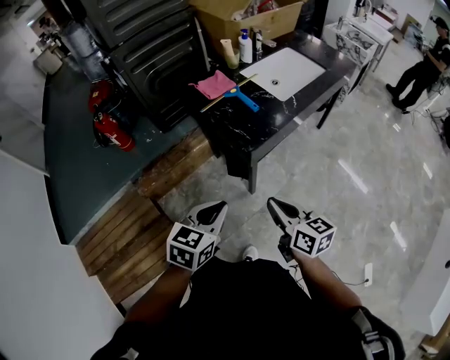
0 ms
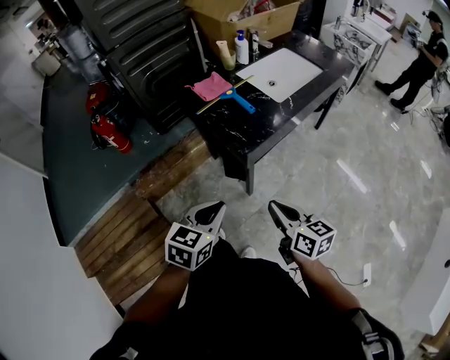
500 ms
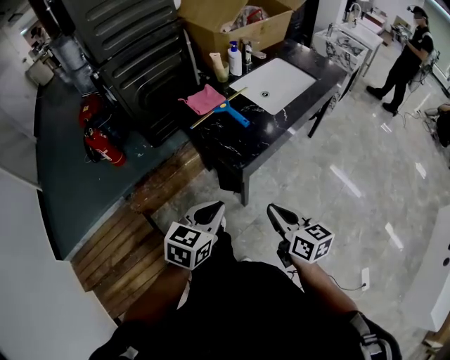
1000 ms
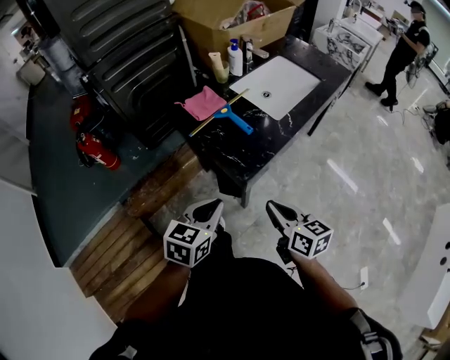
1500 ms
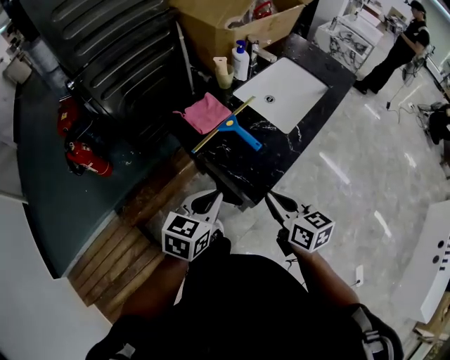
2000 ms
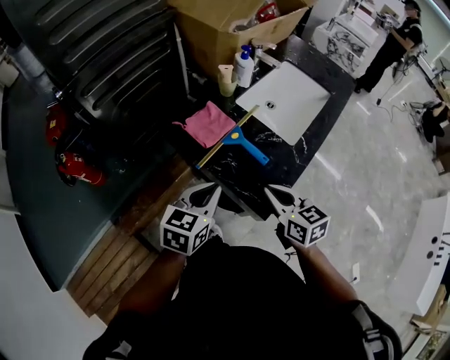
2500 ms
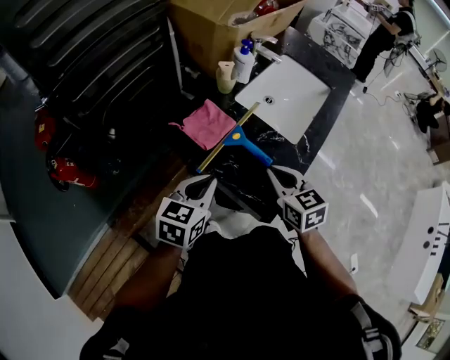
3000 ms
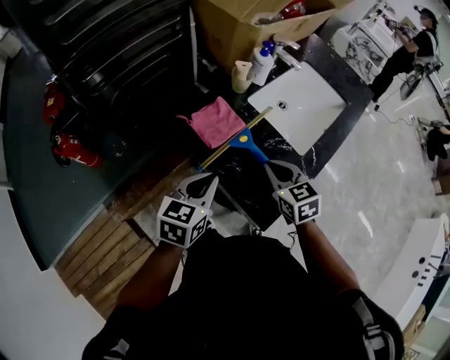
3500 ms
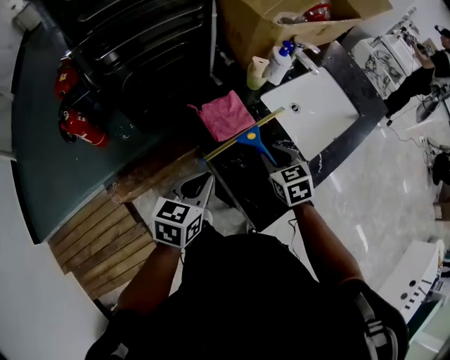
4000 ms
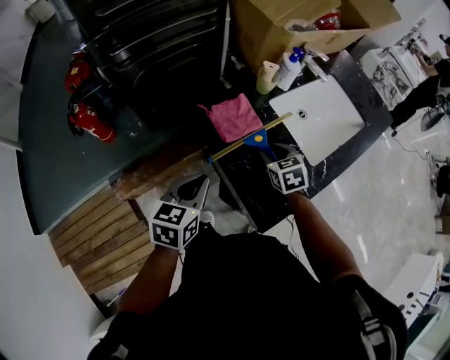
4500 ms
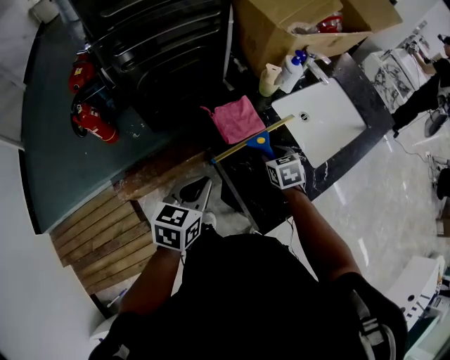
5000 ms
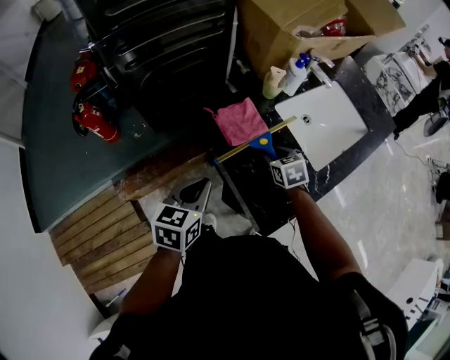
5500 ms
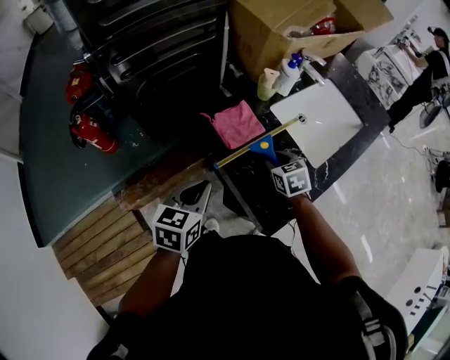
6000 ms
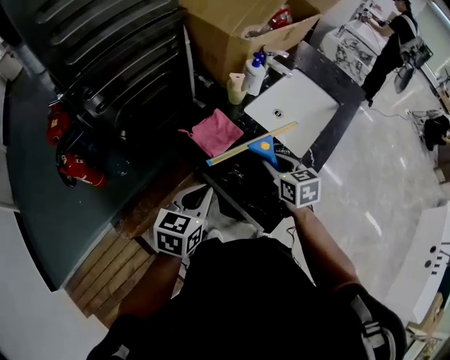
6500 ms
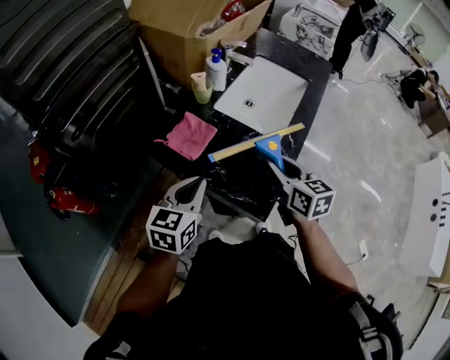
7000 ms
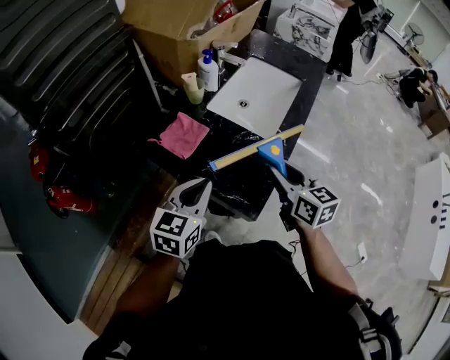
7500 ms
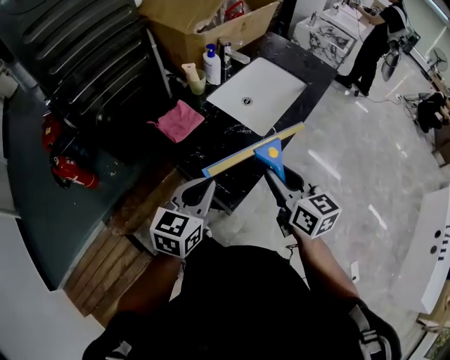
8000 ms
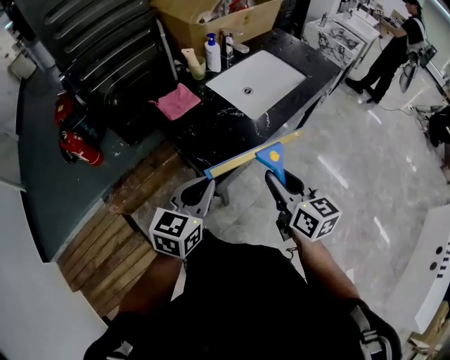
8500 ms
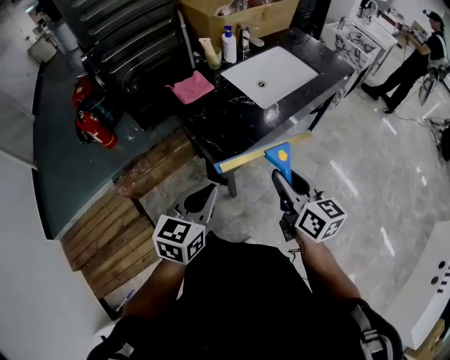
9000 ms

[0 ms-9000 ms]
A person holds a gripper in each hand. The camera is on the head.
0 ms to 2000 ms: The grippers both shift forward by some 25 cm.
2000 ms to 4500 ms: The right gripper shifts some 25 cm forward, turns by some 40 degrees, and opens, while the left gripper moves forward and to the left, approximately 15 cm.
4500 ms to 7000 ms: The left gripper heads to the right, covering approximately 5 cm, and changes its angle by approximately 30 degrees; the right gripper goes roughly 20 cm upward, backward and to the right, and turns by approximately 40 degrees.
7000 ms to 9000 ms: The two grippers go approximately 25 cm backward and to the right. The right gripper changes its angle by approximately 20 degrees.

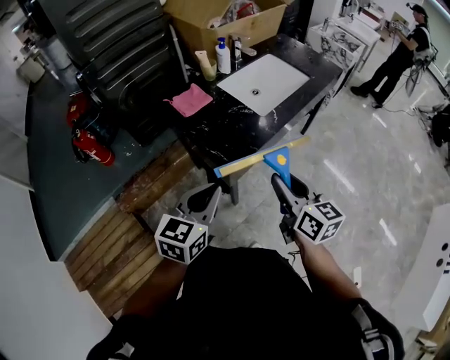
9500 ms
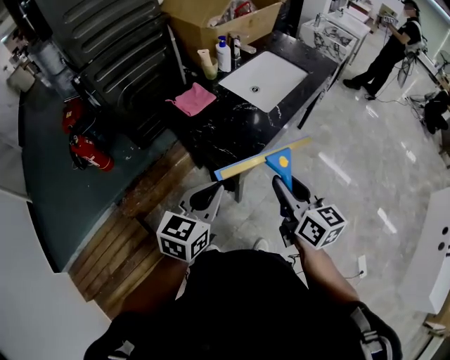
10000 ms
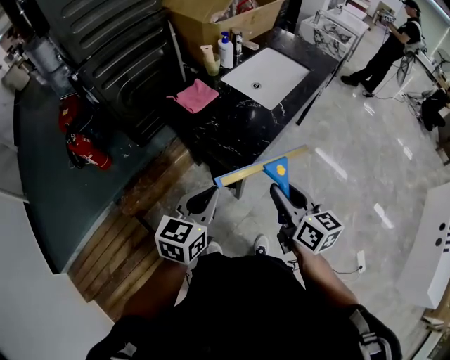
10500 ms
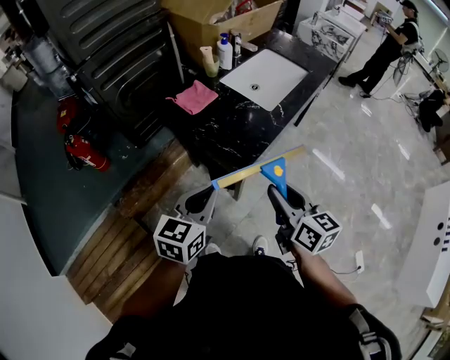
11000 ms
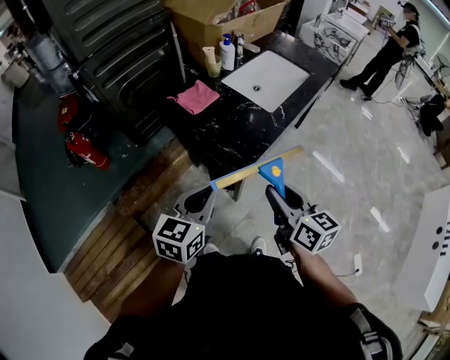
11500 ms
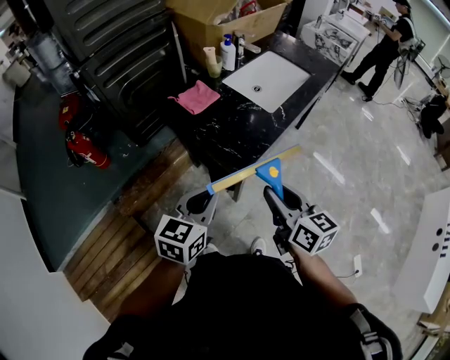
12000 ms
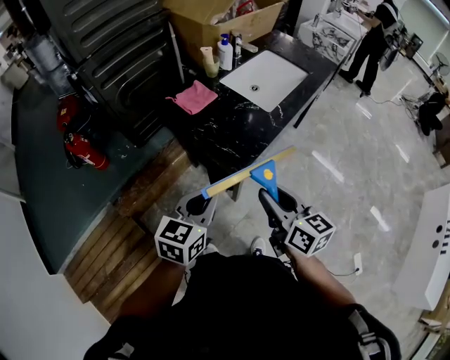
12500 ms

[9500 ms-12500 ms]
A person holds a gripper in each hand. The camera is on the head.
9500 ms to 11000 ms: Both grippers travel together to the left, roughly 10 cm.
11000 ms to 12500 ms: There are only small adjustments of the grippers.

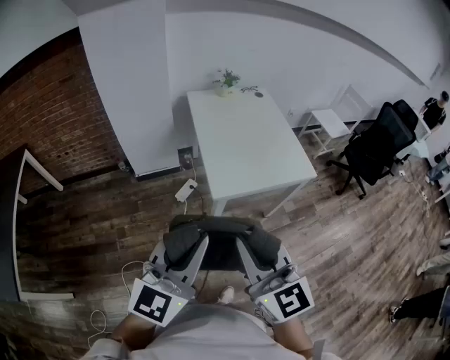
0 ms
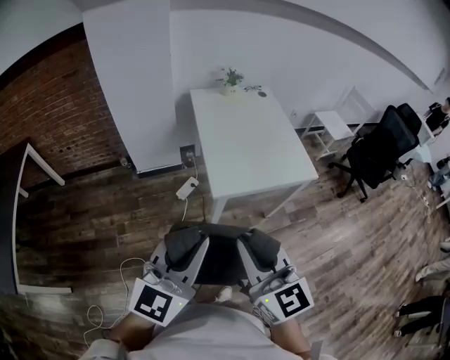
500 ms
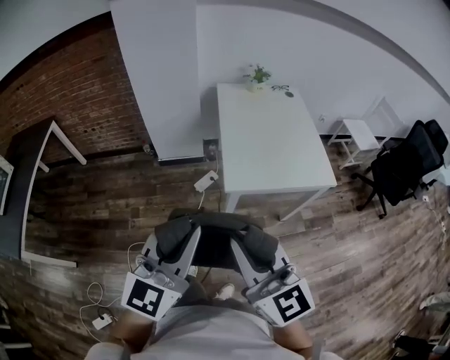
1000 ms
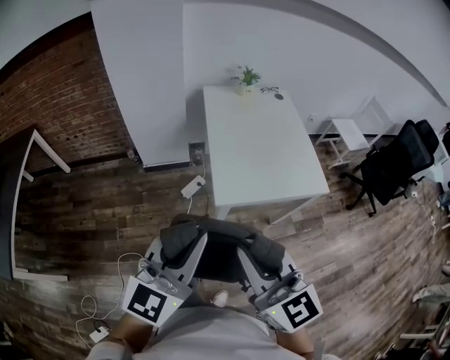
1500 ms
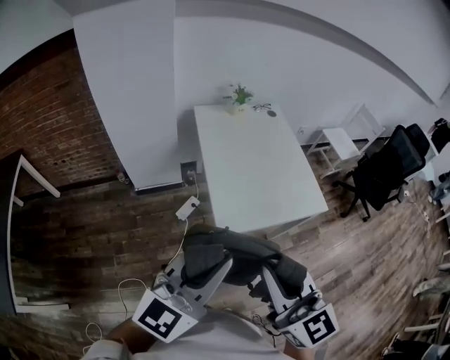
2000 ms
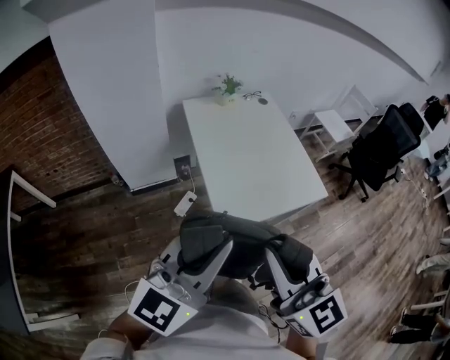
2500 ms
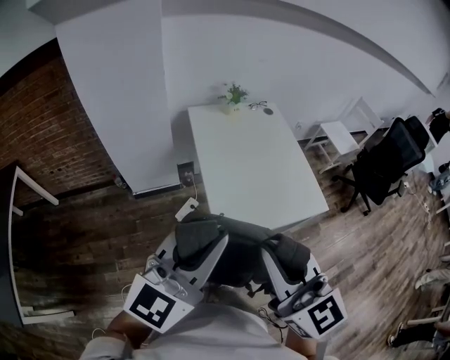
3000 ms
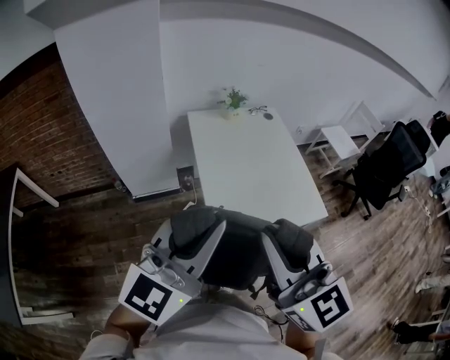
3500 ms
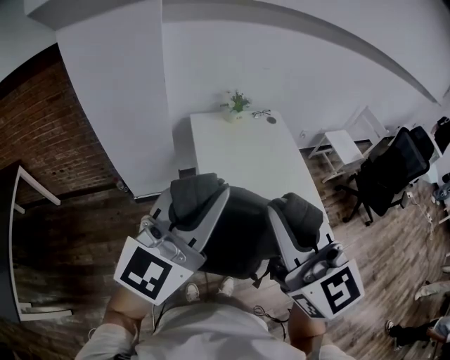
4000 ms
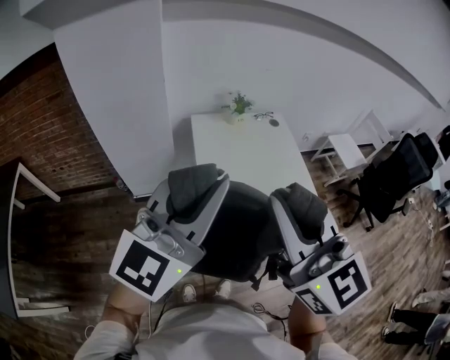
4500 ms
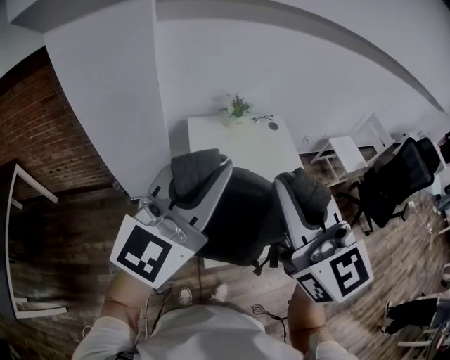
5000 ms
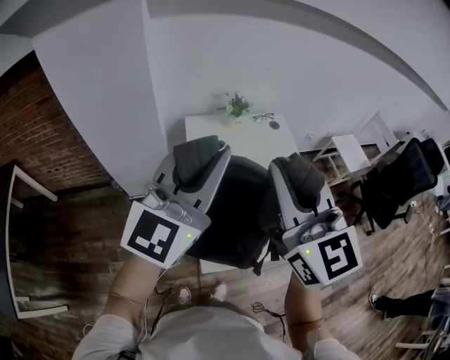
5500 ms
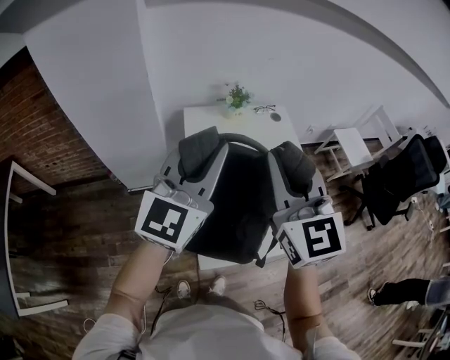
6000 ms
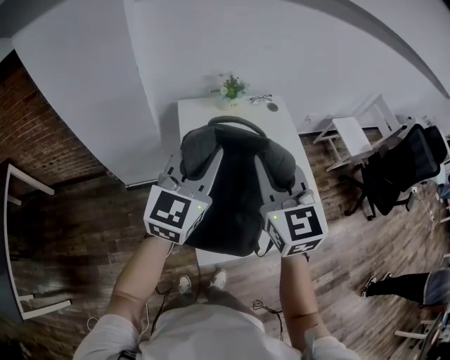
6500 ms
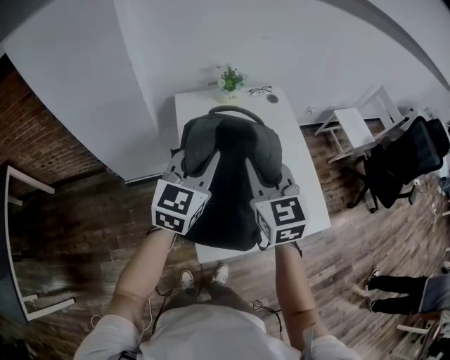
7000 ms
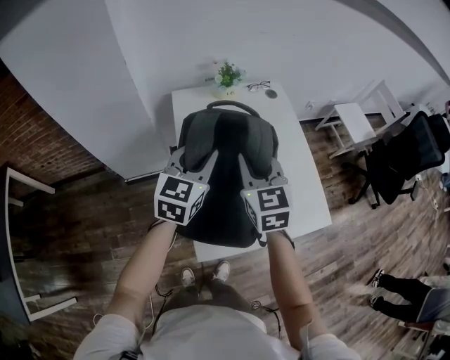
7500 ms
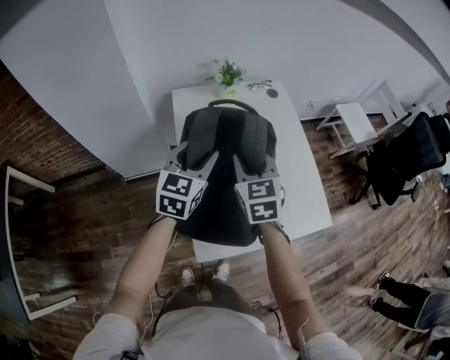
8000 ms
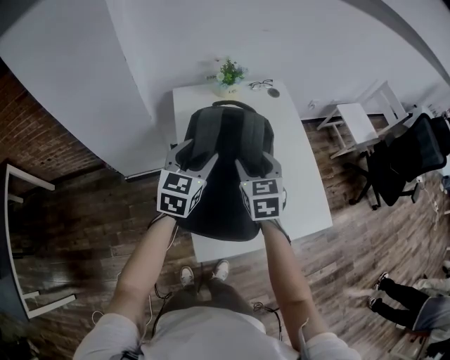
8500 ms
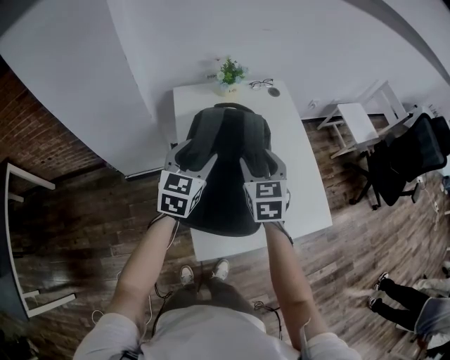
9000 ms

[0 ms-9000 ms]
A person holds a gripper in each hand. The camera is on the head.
0 ms to 2000 ms: The grippers both shift forward by about 15 cm.
2000 ms to 4500 ms: The grippers both shift forward and upward by some 25 cm.
4500 ms to 7000 ms: The grippers both shift forward and downward by approximately 35 cm. The right gripper swivels approximately 20 degrees. Meanwhile the left gripper changes its angle by roughly 20 degrees.
7000 ms to 9000 ms: The left gripper heads downward, covering some 10 cm, and opens. Meanwhile the right gripper is displaced downward and forward by some 15 cm, and opens its fingers.

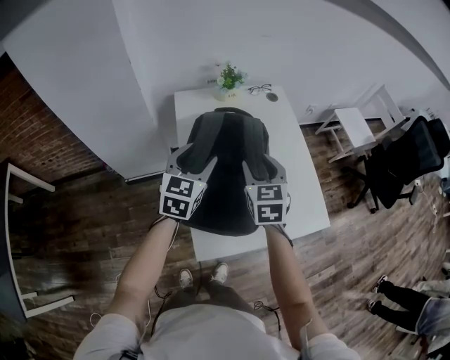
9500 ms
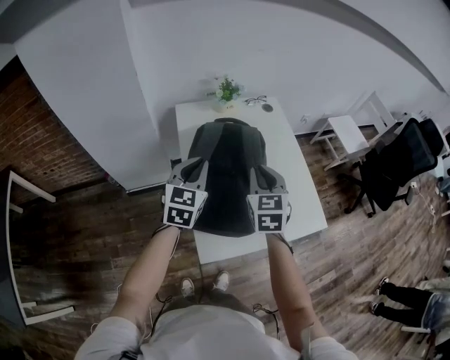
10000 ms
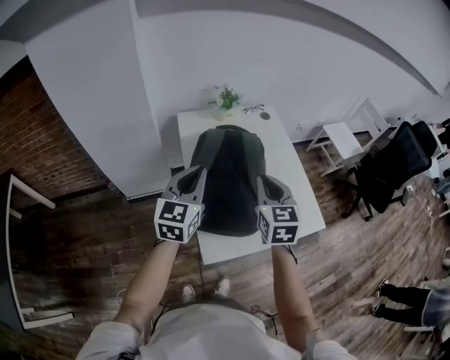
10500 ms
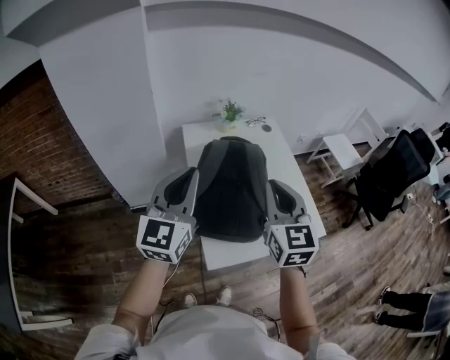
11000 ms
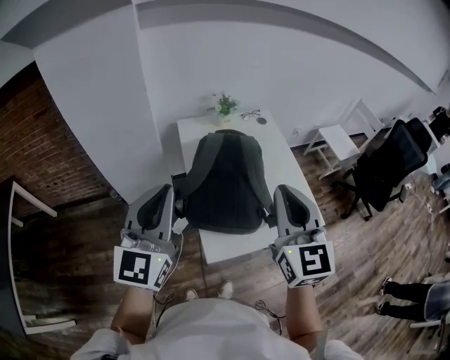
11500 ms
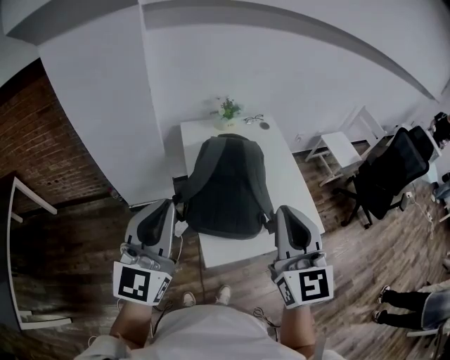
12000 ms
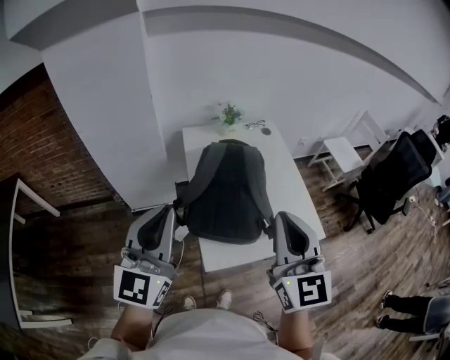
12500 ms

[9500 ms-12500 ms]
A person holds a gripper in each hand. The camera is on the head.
9500 ms to 11000 ms: The two grippers go about 25 cm upward and backward. The right gripper closes up. The left gripper rotates approximately 30 degrees, and closes its fingers.
11000 ms to 12500 ms: The two grippers go some 10 cm backward.

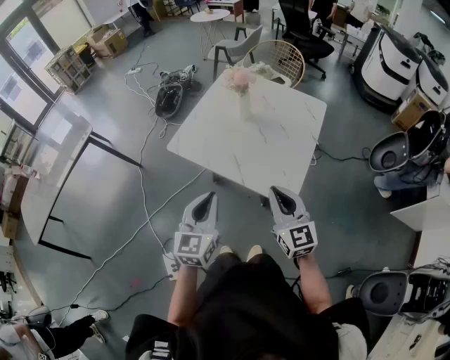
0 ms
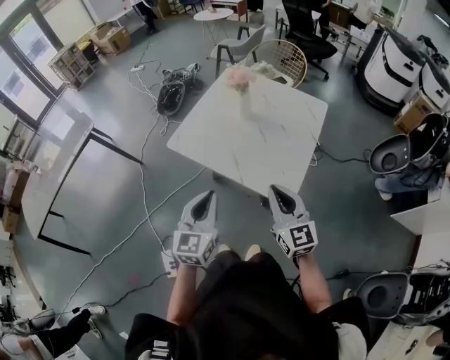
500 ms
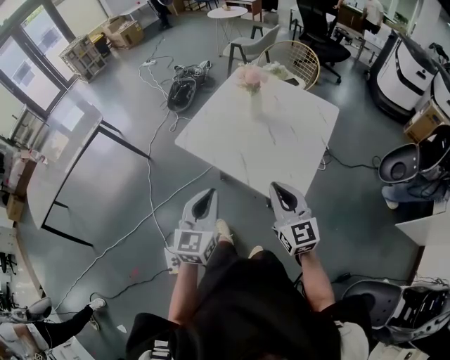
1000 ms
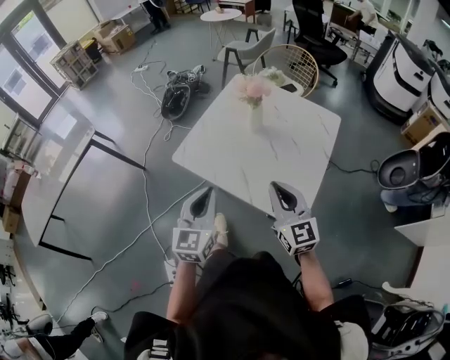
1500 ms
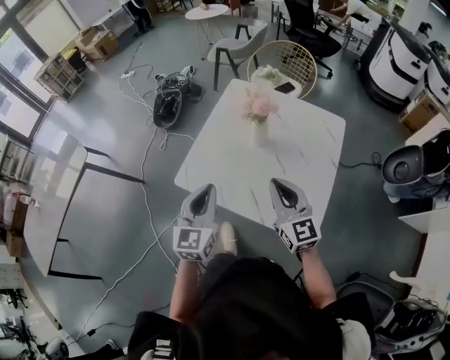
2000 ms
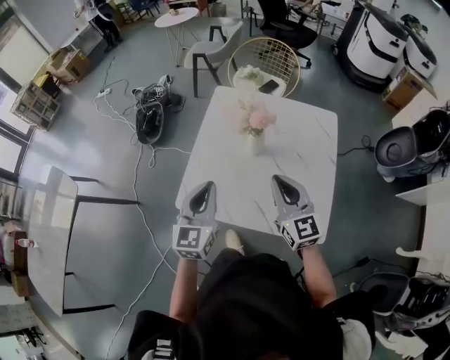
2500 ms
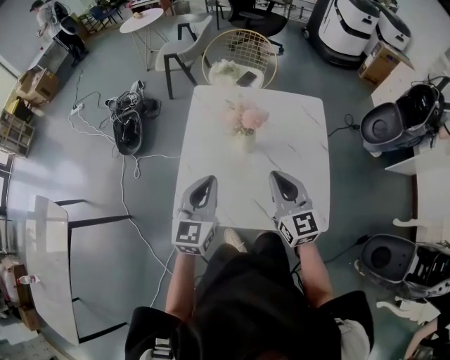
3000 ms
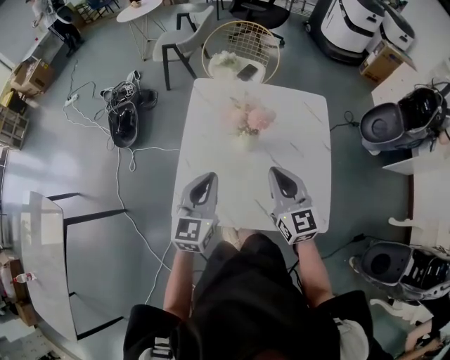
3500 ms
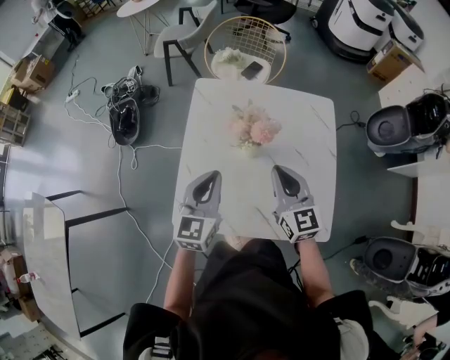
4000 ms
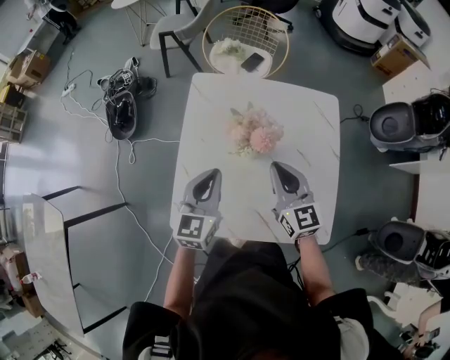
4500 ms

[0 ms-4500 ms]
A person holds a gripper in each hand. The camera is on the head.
0 ms to 2000 ms: Both grippers travel together forward, approximately 20 cm.
2000 ms to 4500 ms: The two grippers go roughly 20 cm forward. The left gripper swivels approximately 20 degrees. Meanwhile the right gripper turns by some 20 degrees.
